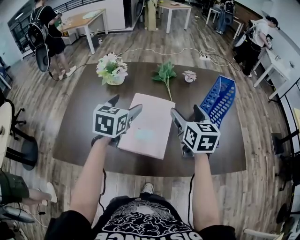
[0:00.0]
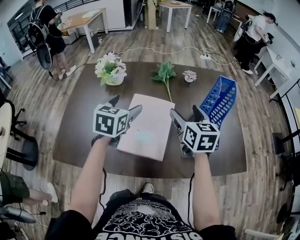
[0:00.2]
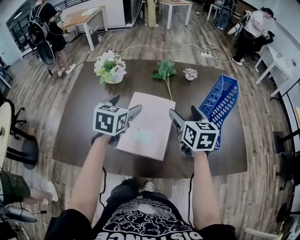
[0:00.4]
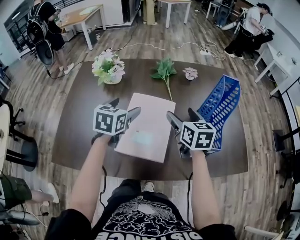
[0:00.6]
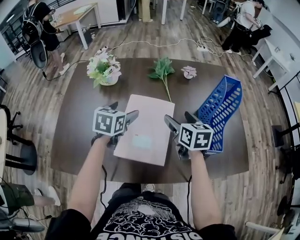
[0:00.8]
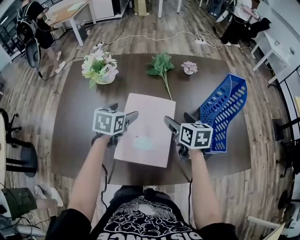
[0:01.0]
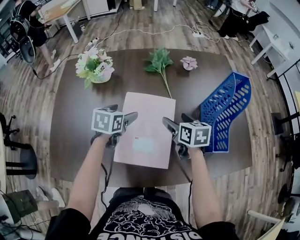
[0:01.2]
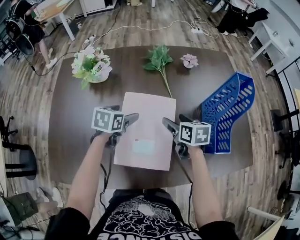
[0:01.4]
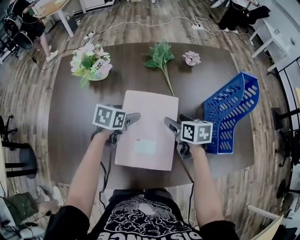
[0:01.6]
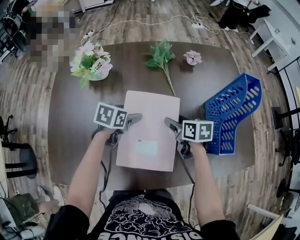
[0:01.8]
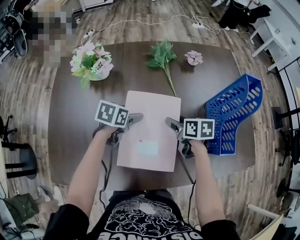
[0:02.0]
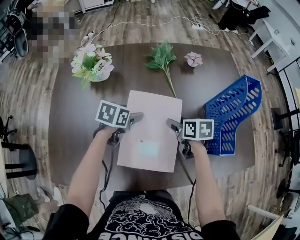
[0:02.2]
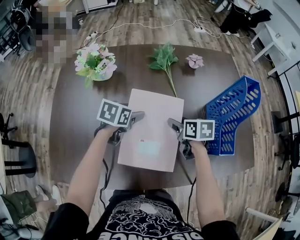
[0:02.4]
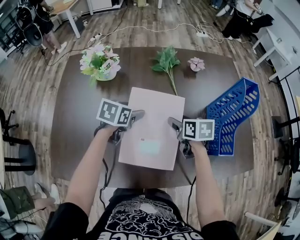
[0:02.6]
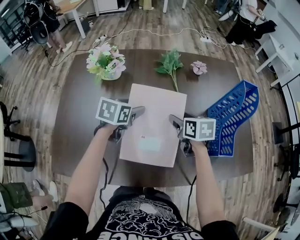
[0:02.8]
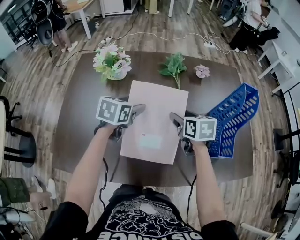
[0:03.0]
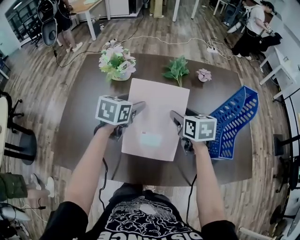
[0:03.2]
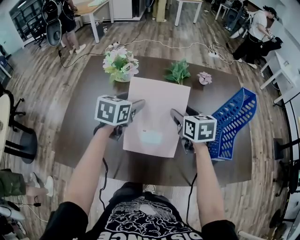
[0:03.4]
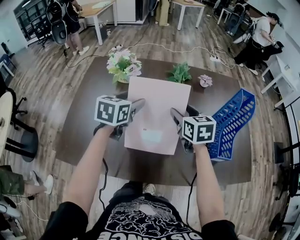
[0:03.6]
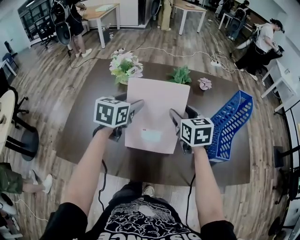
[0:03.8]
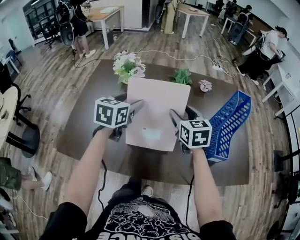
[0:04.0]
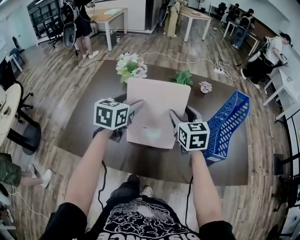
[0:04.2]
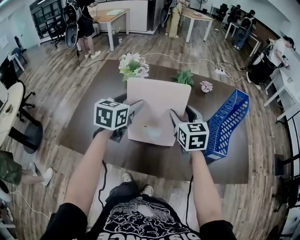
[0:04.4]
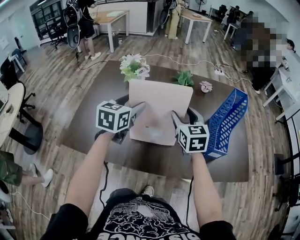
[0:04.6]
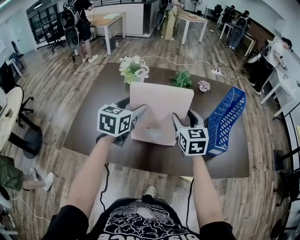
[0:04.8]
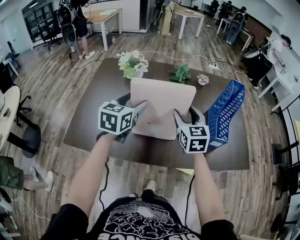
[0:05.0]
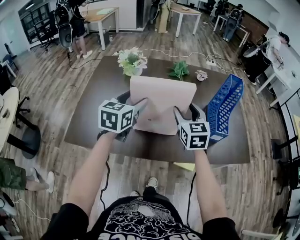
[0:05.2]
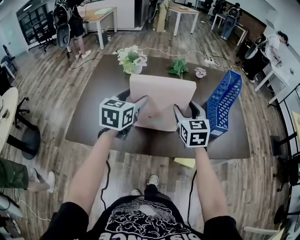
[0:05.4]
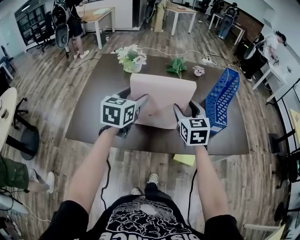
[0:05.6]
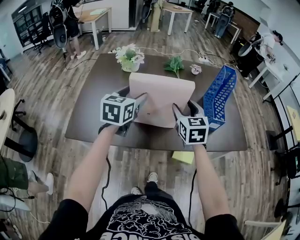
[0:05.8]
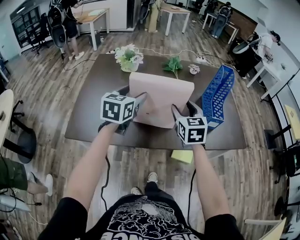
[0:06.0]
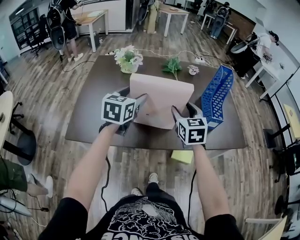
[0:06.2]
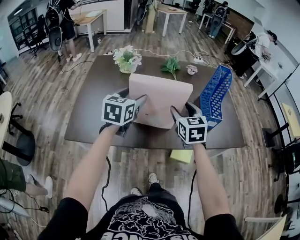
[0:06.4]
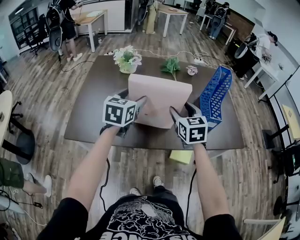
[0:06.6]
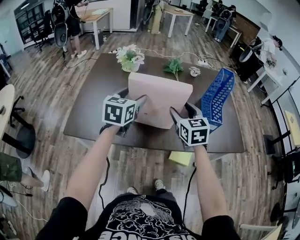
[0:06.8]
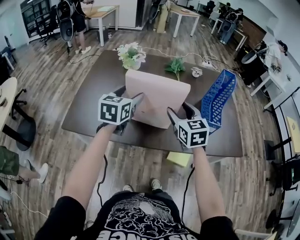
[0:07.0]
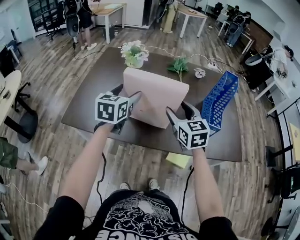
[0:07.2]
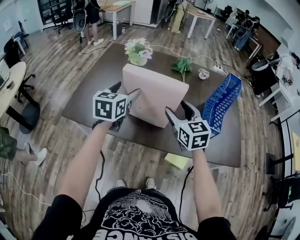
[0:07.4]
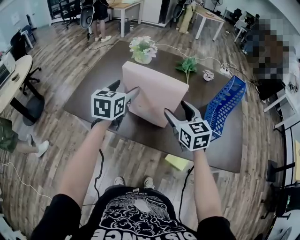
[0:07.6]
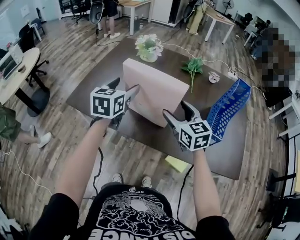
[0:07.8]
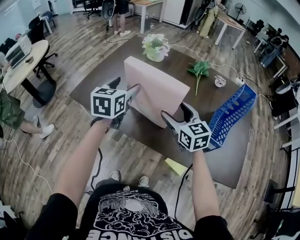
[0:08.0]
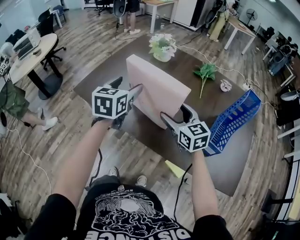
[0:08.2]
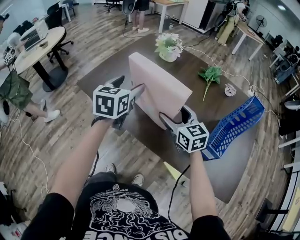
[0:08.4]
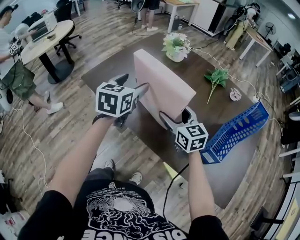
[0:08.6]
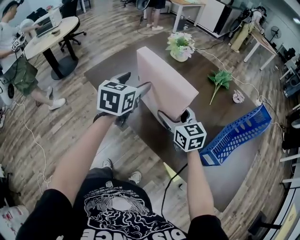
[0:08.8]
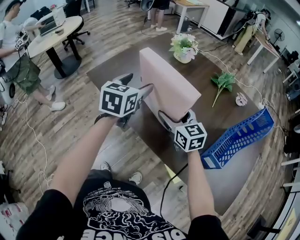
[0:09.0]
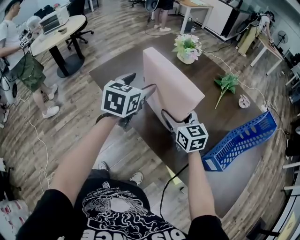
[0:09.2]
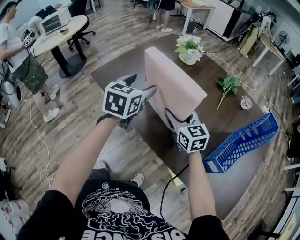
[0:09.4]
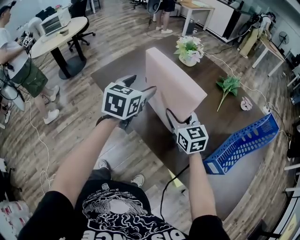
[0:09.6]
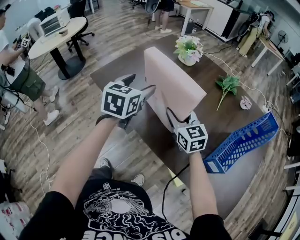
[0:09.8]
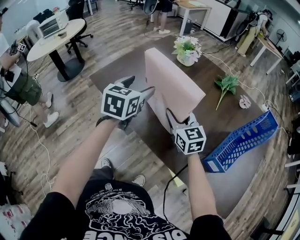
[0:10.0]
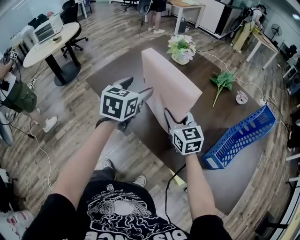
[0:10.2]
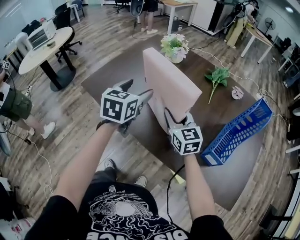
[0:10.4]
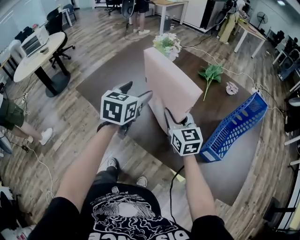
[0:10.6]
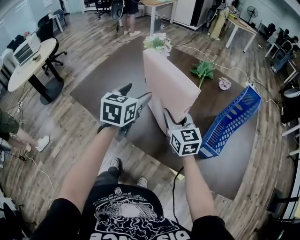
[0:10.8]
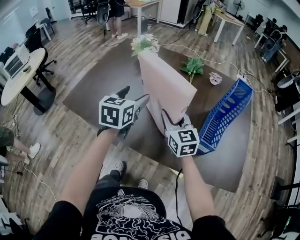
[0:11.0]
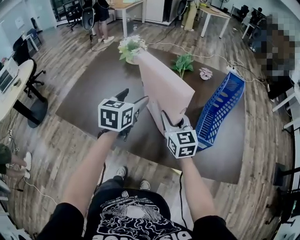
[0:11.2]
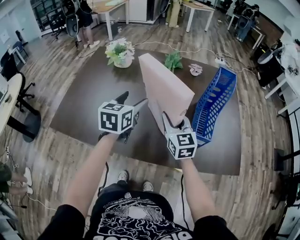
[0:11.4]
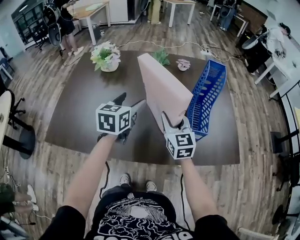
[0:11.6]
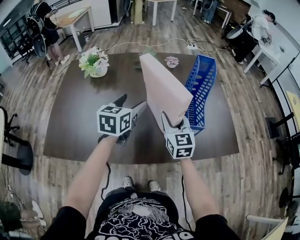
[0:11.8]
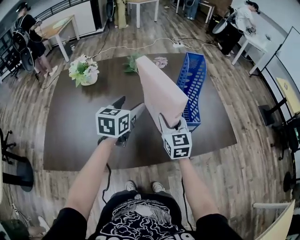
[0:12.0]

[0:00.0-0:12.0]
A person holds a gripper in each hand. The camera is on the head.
0:00.0 to 0:01.6: The right gripper shifts about 20 cm downward, and changes its angle by roughly 30 degrees. The left gripper goes approximately 20 cm downward and forward, and turns by approximately 30 degrees.
0:01.6 to 0:03.0: The grippers both shift upward by roughly 10 cm.
0:03.0 to 0:04.4: Both grippers travel together upward and backward, roughly 15 cm. The left gripper swivels about 20 degrees. Meanwhile the right gripper turns by approximately 30 degrees.
0:04.4 to 0:06.0: The grippers both shift backward by some 10 cm.
0:06.0 to 0:07.6: The left gripper swivels roughly 20 degrees. Meanwhile the right gripper rotates about 30 degrees.
0:07.6 to 0:09.0: The left gripper rotates some 20 degrees. The right gripper moves downward, approximately 5 cm, and swivels some 30 degrees.
0:09.0 to 0:10.4: The right gripper closes.
0:10.4 to 0:12.0: The left gripper changes place by some 20 cm, and rotates about 40 degrees. The right gripper ends up some 15 cm from where it was, and changes its angle by approximately 50 degrees.

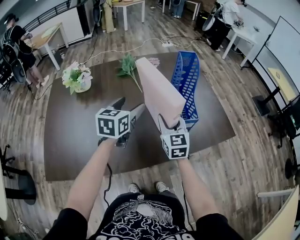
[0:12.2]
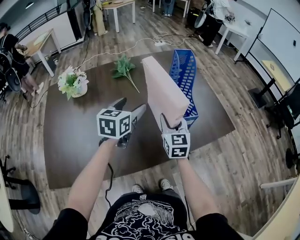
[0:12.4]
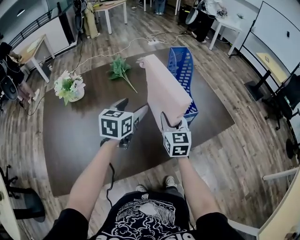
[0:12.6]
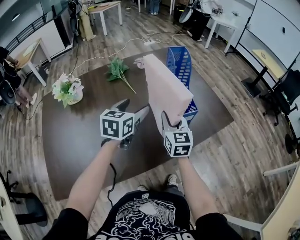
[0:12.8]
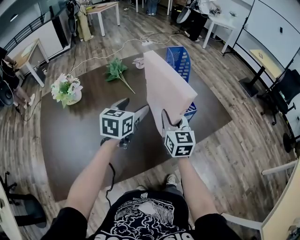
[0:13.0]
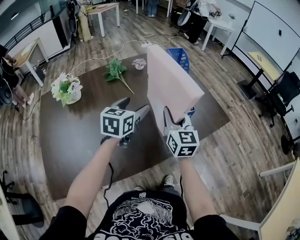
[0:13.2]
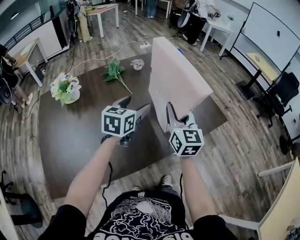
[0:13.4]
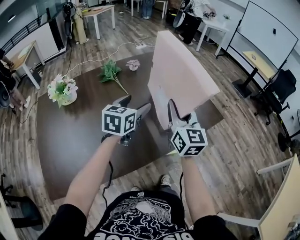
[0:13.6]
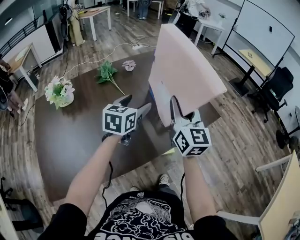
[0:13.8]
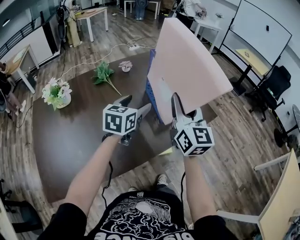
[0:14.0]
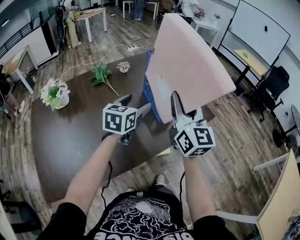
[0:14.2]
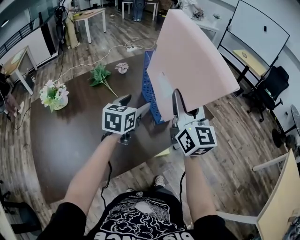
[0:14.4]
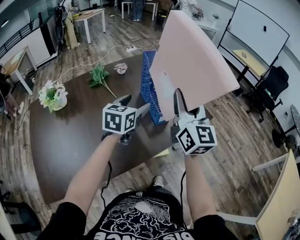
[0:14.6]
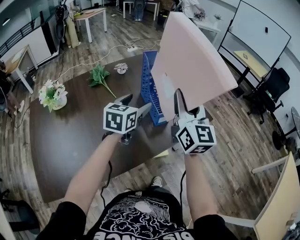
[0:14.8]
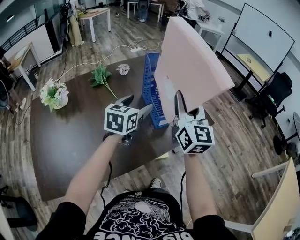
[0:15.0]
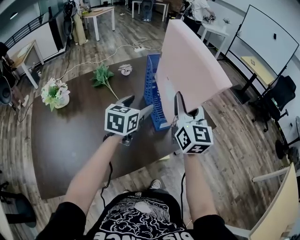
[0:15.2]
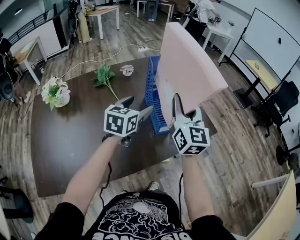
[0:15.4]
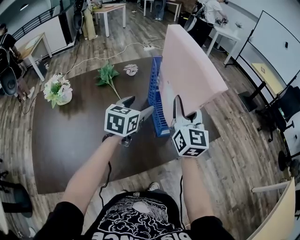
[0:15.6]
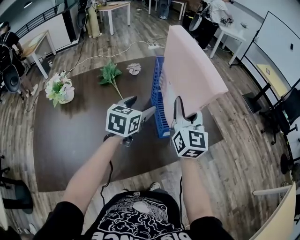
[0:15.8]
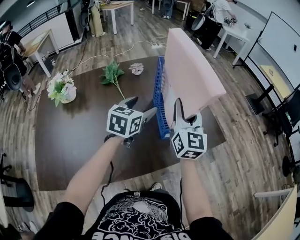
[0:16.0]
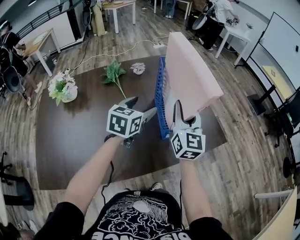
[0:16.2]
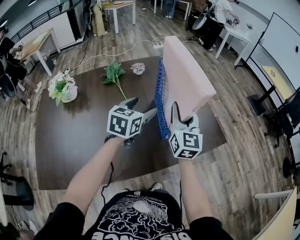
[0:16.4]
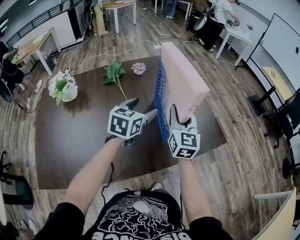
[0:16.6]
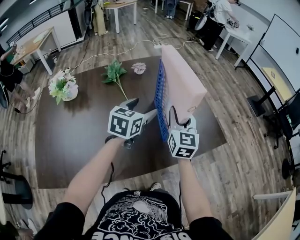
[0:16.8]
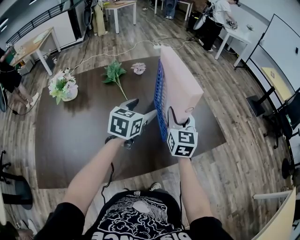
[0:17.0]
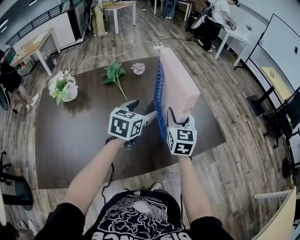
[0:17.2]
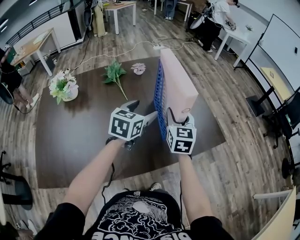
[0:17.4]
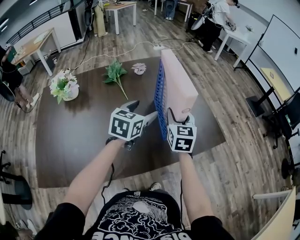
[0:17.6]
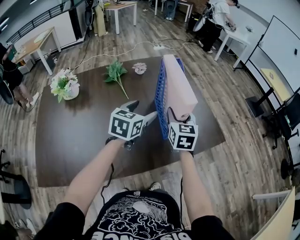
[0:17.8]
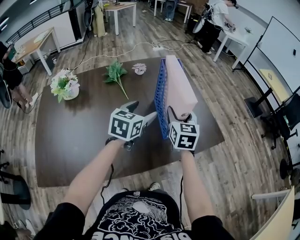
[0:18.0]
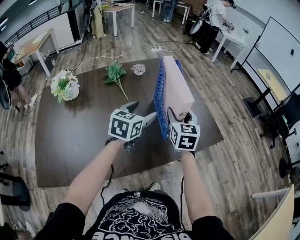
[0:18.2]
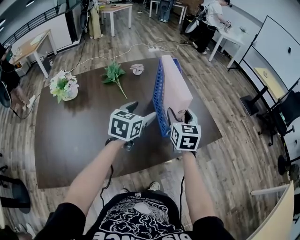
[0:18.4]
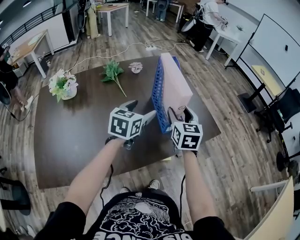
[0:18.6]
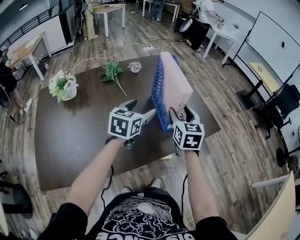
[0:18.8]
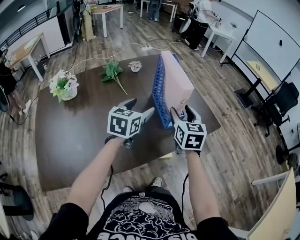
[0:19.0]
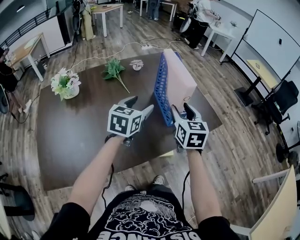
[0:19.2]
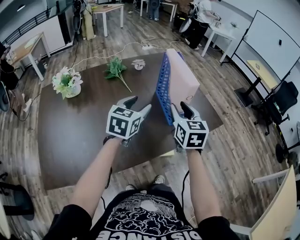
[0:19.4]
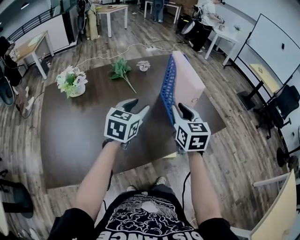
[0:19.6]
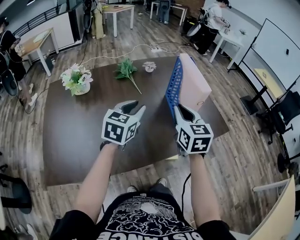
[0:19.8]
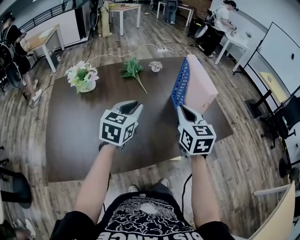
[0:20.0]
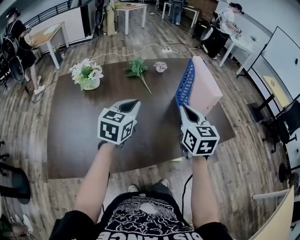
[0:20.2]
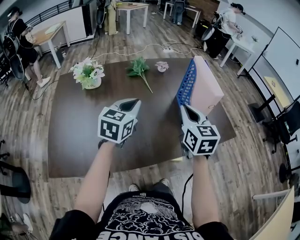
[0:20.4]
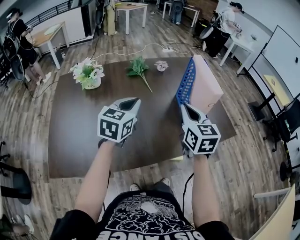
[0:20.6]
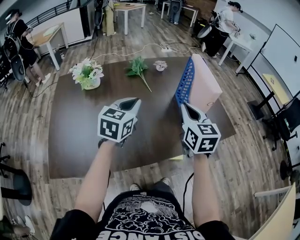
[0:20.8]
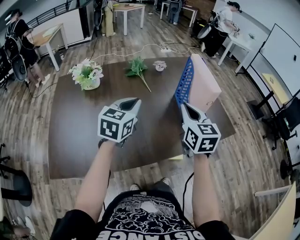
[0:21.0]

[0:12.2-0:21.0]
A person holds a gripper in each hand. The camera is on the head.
0:12.2 to 0:13.6: The left gripper travels to the right by roughly 5 cm. Meanwhile the right gripper goes about 15 cm upward and to the right, and changes its angle by about 20 degrees.
0:13.6 to 0:15.2: The right gripper shifts approximately 10 cm to the right, upward and forward. The left gripper goes roughly 5 cm to the right.
0:15.2 to 0:16.6: The left gripper ends up approximately 5 cm from where it was. The right gripper travels downward and forward by approximately 15 cm.
0:16.6 to 0:18.0: The grippers stay close to where they were, moving slightly.
0:18.0 to 0:19.6: The right gripper goes roughly 15 cm backward and upward. The left gripper goes roughly 10 cm backward and to the left, and closes up.
0:19.6 to 0:21.0: The left gripper goes roughly 10 cm to the left, and closes up.

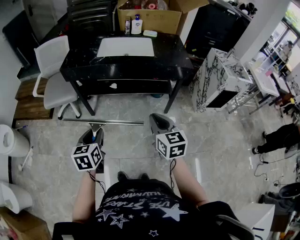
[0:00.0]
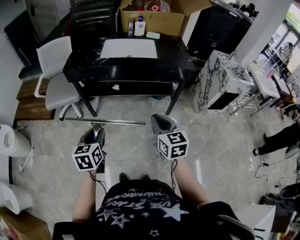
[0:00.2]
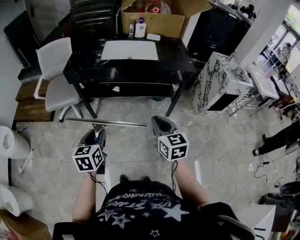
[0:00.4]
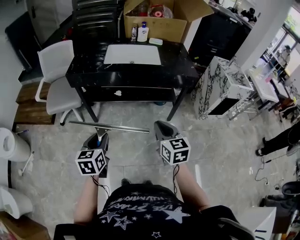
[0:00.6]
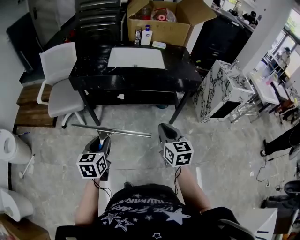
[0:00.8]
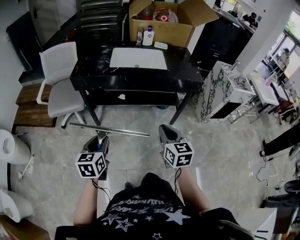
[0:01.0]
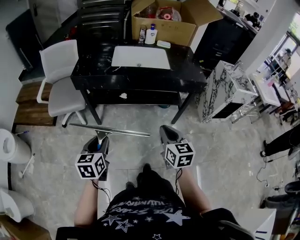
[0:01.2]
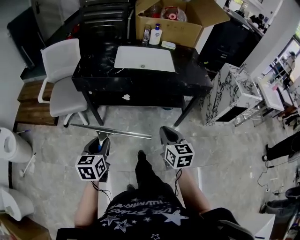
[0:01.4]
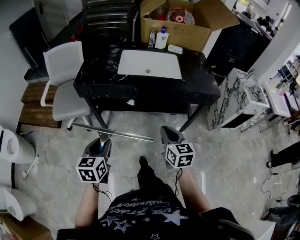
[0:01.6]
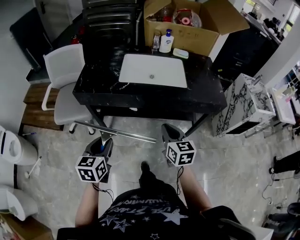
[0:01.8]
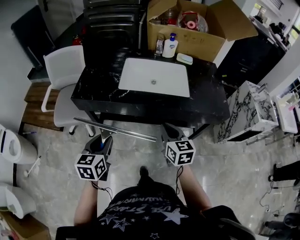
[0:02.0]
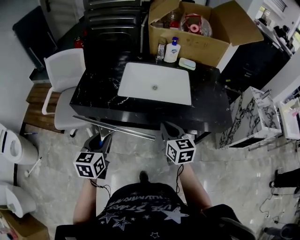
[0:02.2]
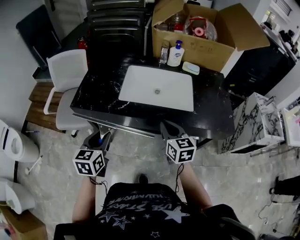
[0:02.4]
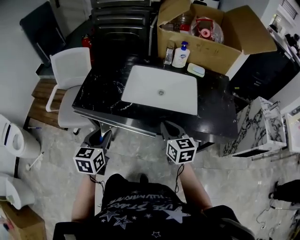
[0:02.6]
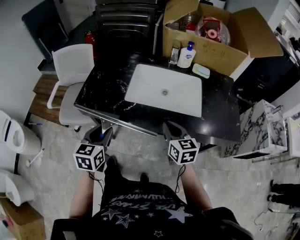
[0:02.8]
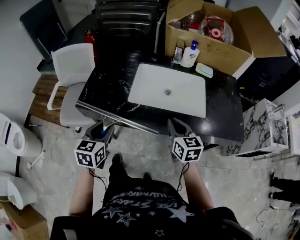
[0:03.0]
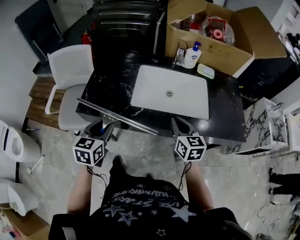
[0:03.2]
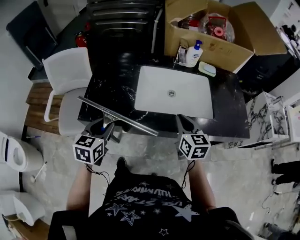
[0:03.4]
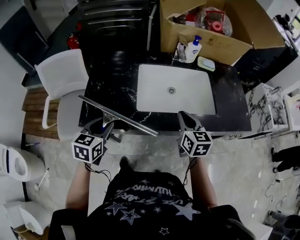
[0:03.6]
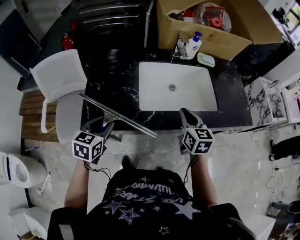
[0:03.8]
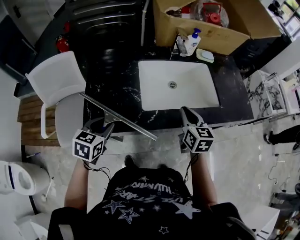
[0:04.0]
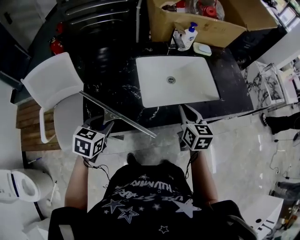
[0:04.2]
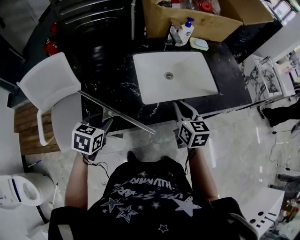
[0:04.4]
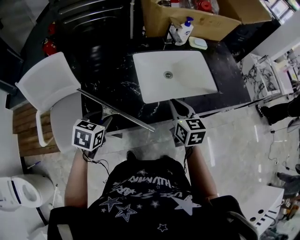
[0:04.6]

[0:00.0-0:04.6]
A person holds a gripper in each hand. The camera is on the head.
0:00.0 to 0:01.6: Both grippers move forward and to the left, roughly 20 cm.
0:01.6 to 0:03.0: The two grippers go roughly 30 cm forward.
0:03.0 to 0:04.6: The left gripper shifts by some 25 cm, and changes its angle by approximately 40 degrees. The right gripper ends up about 15 cm from where it was, and rotates approximately 20 degrees.
